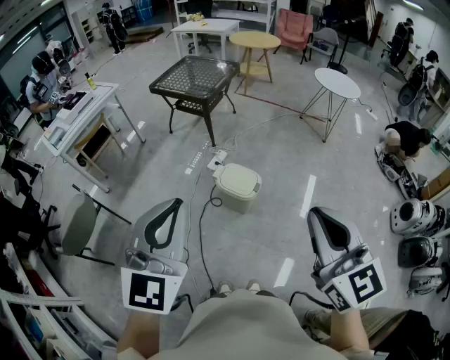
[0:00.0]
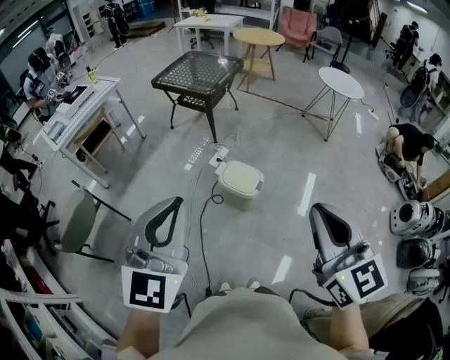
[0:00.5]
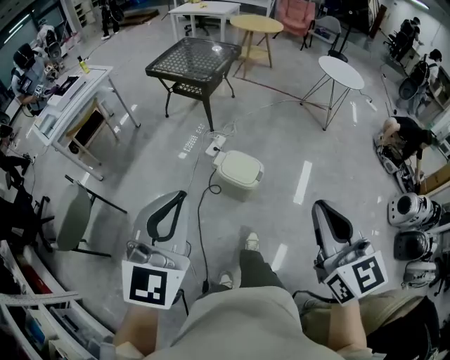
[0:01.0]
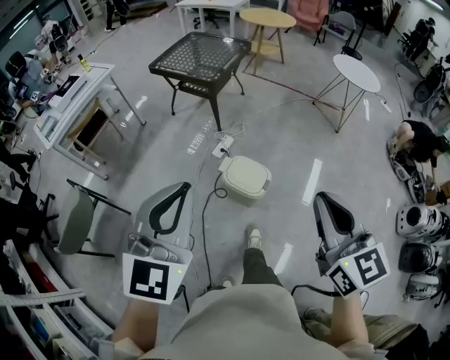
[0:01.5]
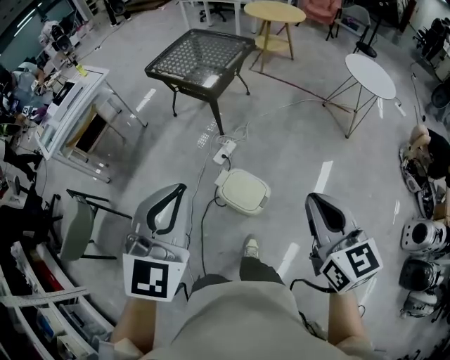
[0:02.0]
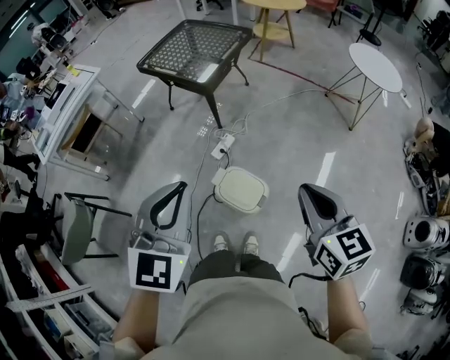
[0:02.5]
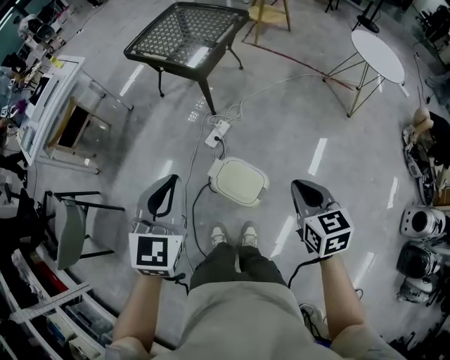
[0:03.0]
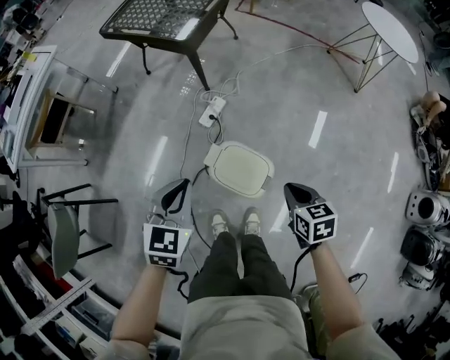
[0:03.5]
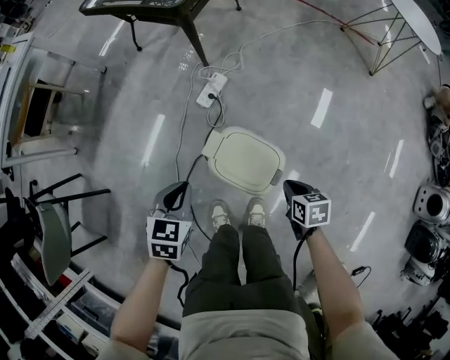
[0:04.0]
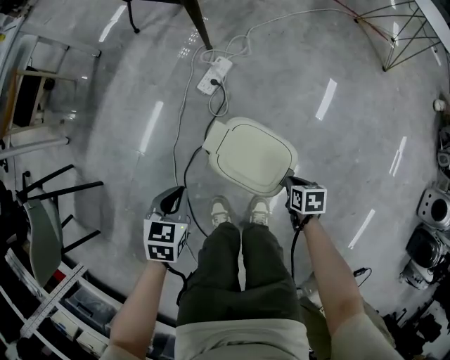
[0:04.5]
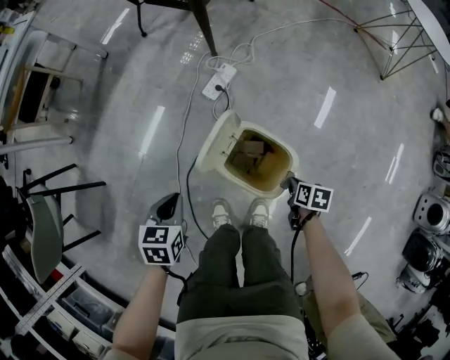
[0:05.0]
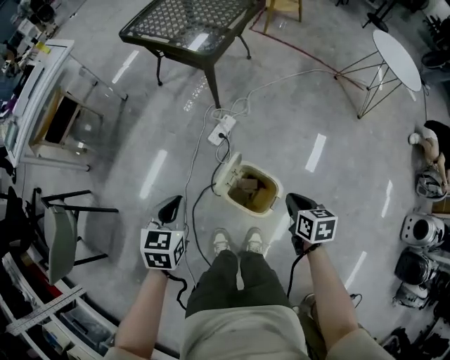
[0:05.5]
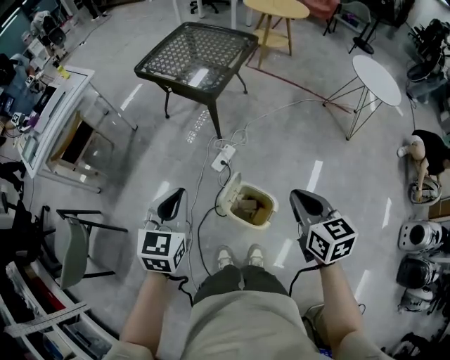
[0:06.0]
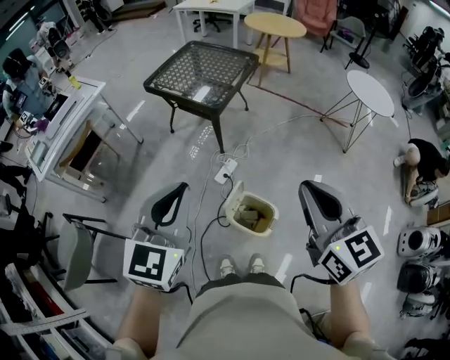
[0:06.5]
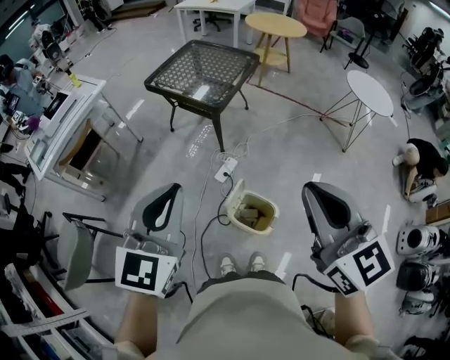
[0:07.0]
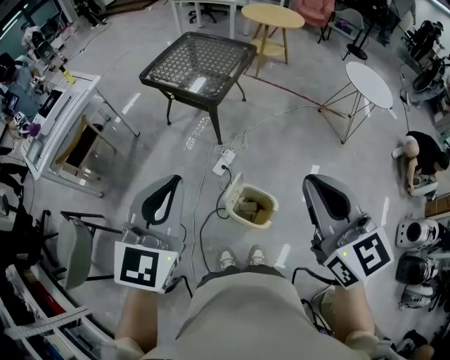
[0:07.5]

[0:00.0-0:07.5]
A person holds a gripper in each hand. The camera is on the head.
0:00.0 to 0:02.0: Both grippers travel together forward, some 30 cm.
0:02.0 to 0:04.0: The two grippers go roughly 50 cm downward. The left gripper angles its fingers downward, by roughly 40 degrees; the right gripper tips its fingers downward by some 50 degrees.
0:04.0 to 0:05.5: The left gripper goes about 15 cm upward and to the left. Meanwhile the right gripper moves upward, some 15 cm.
0:05.5 to 0:07.5: The two grippers go about 40 cm upward. The left gripper angles its fingers upward, by some 30 degrees. Meanwhile the right gripper points its fingers some 40 degrees further upward.

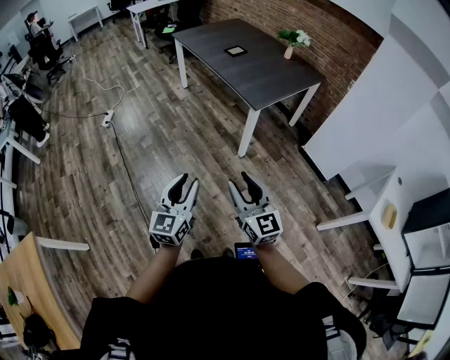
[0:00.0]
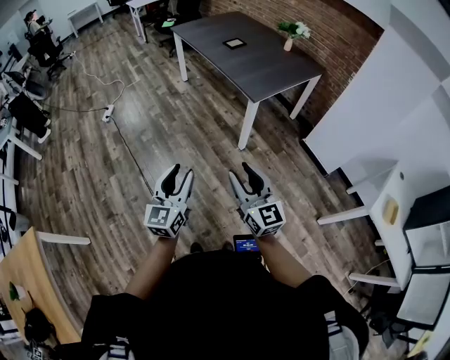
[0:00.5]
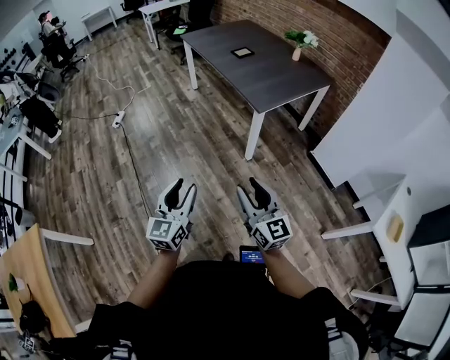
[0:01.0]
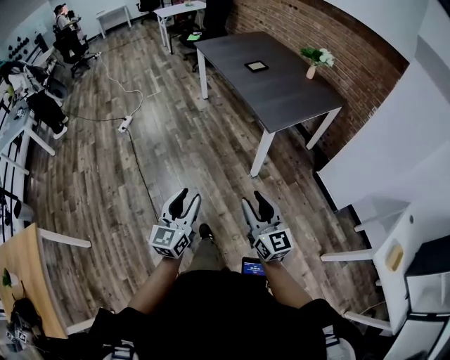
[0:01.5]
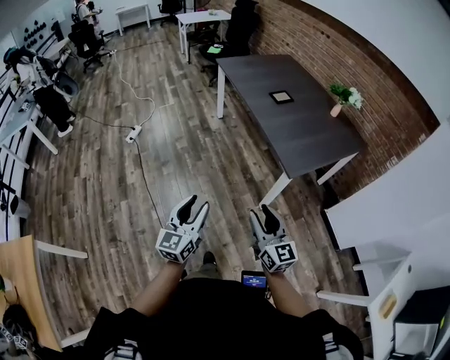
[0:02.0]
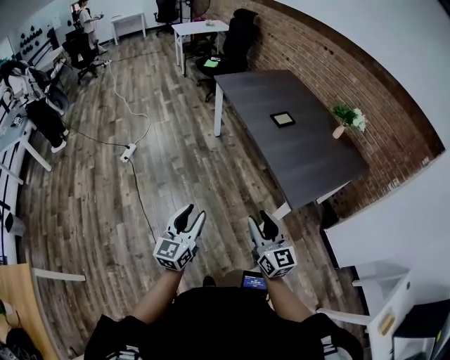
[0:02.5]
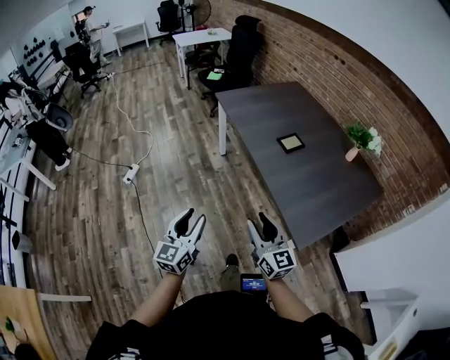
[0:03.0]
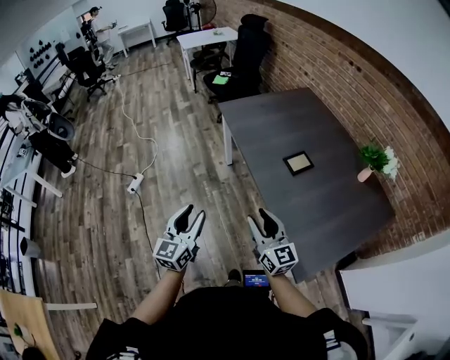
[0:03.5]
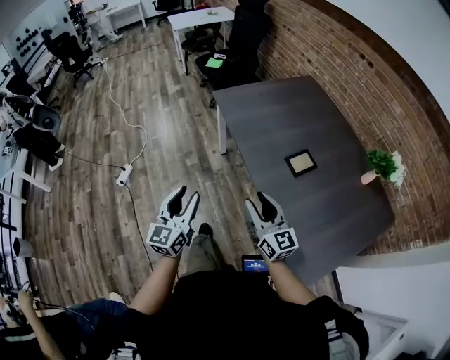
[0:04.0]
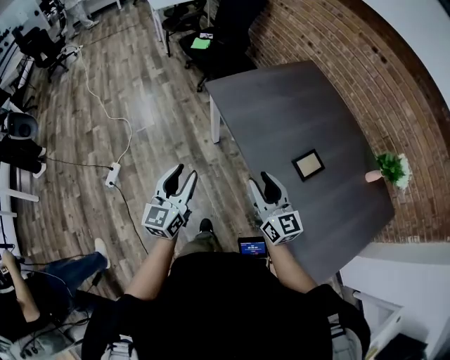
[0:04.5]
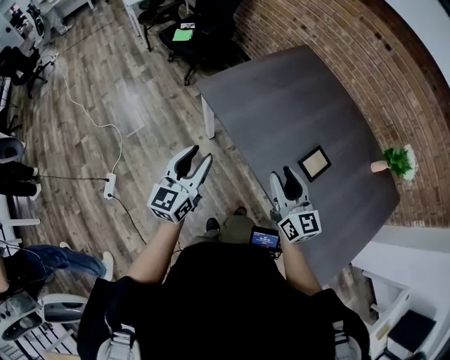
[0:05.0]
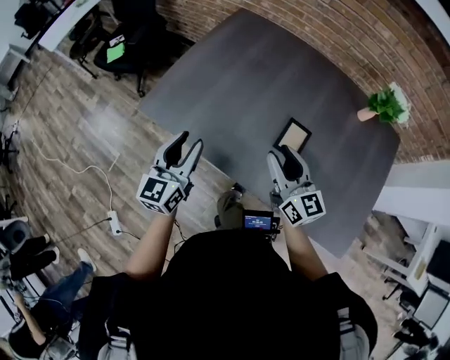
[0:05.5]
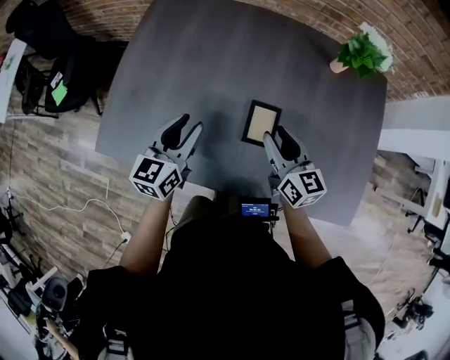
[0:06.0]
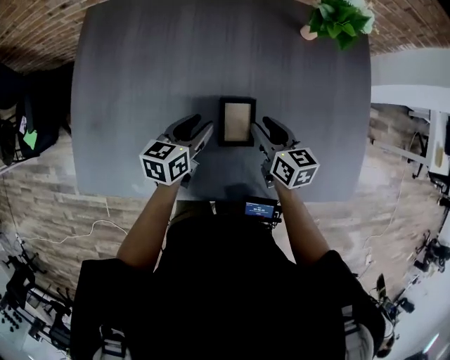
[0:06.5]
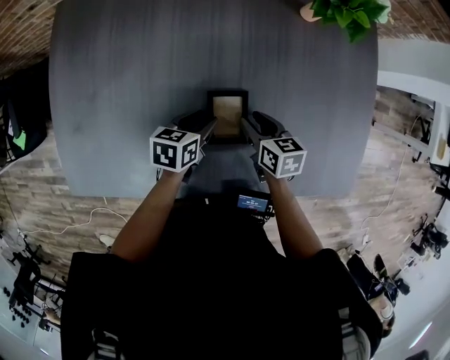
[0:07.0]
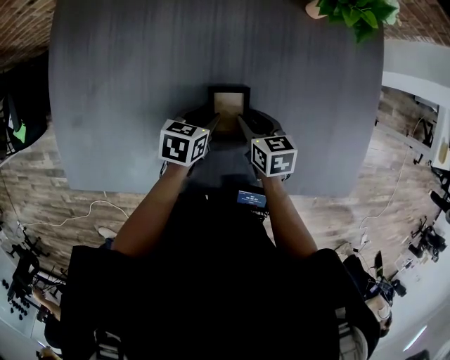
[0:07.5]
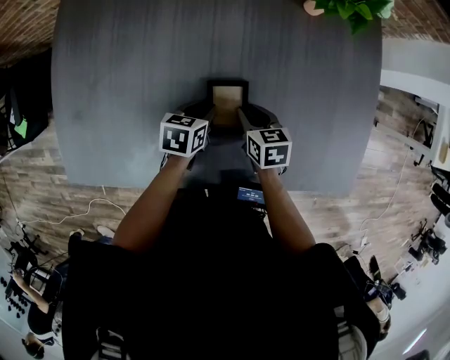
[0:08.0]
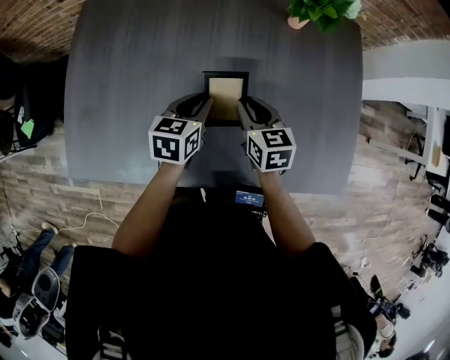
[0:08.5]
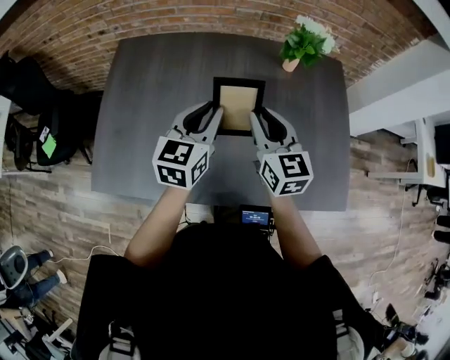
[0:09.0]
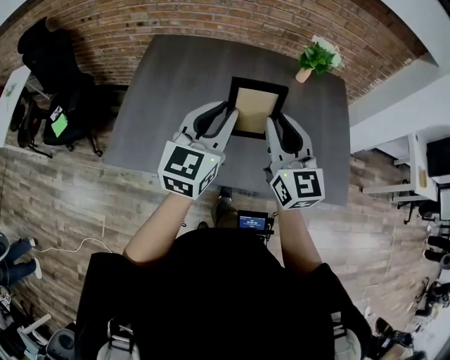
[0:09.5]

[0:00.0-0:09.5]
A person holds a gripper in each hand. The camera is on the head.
0:00.0 to 0:02.0: Both grippers travel together forward, roughly 25 cm.
0:02.0 to 0:04.0: The two grippers travel together, forward, about 60 cm.
0:04.0 to 0:05.5: The left gripper ends up about 50 cm from where it was, and rotates some 40 degrees; the right gripper shifts by roughly 30 cm, and rotates some 40 degrees.
0:05.5 to 0:07.5: The left gripper changes place by some 50 cm, and points its fingers approximately 40 degrees further downward; the right gripper is displaced downward by roughly 25 cm, and tips its fingers downward by some 50 degrees.
0:07.5 to 0:09.5: The grippers both shift upward by some 40 cm. The left gripper tilts its fingers approximately 50 degrees upward; the right gripper tips its fingers upward by approximately 50 degrees.

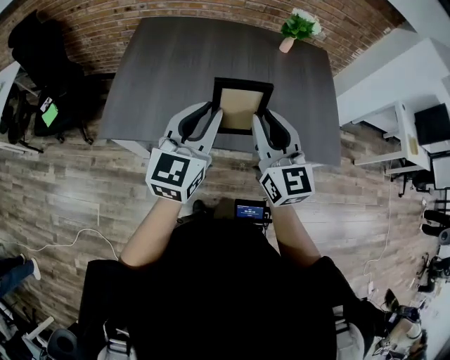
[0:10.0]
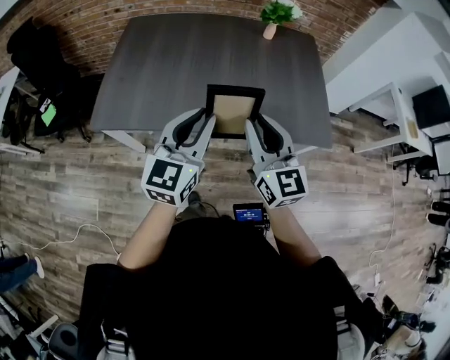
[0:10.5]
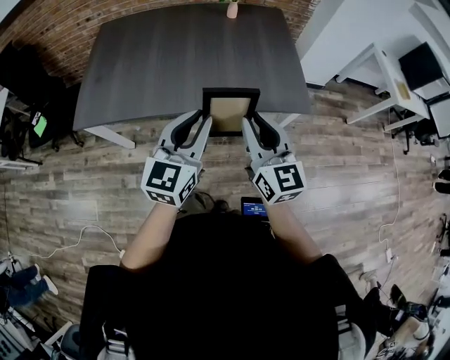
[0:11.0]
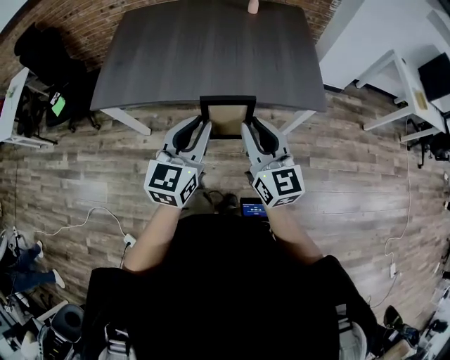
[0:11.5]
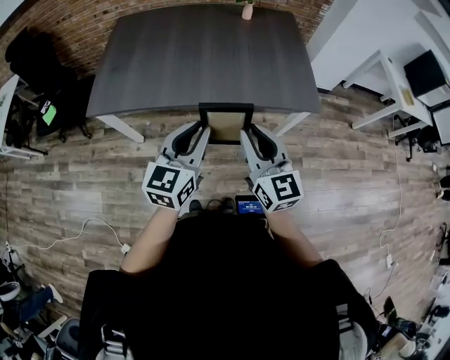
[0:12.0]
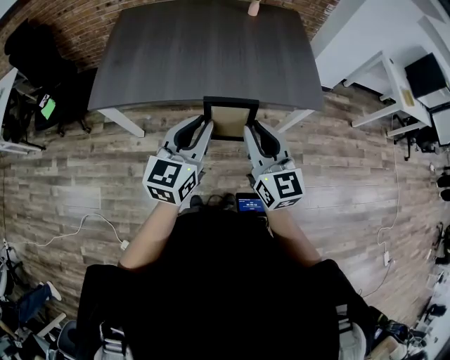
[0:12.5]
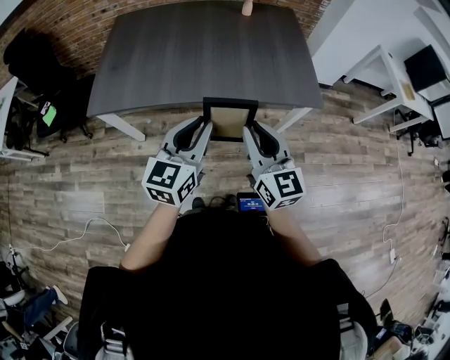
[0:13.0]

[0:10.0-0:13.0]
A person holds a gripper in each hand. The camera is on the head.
0:10.0 to 0:11.5: Both grippers travel together backward and to the right, about 30 cm.
0:11.5 to 0:13.0: The grippers make only small movements.

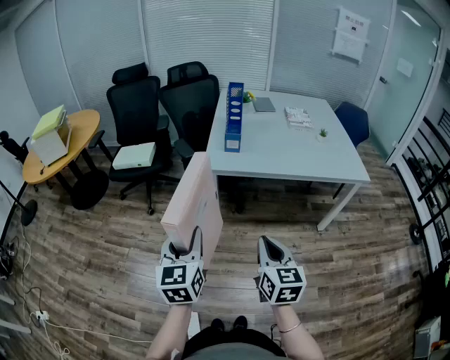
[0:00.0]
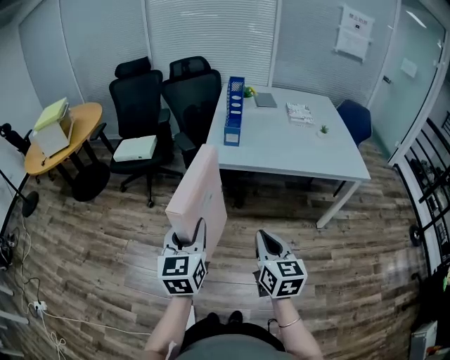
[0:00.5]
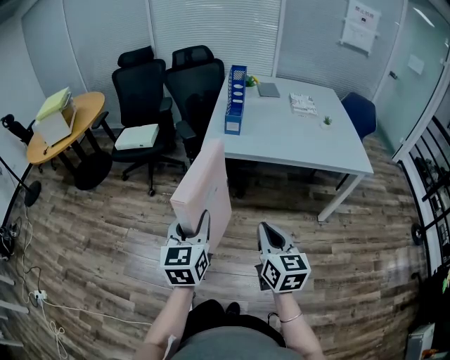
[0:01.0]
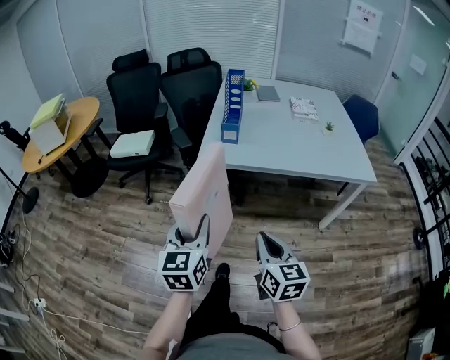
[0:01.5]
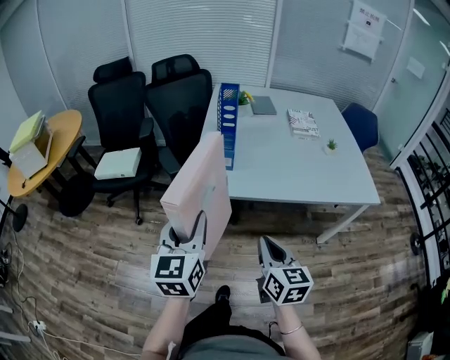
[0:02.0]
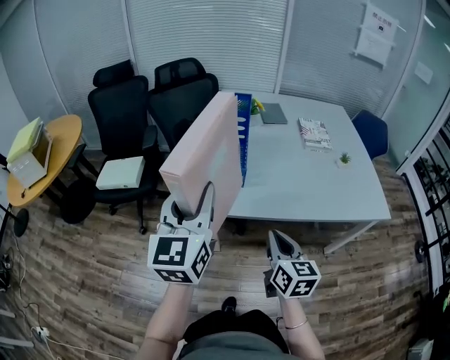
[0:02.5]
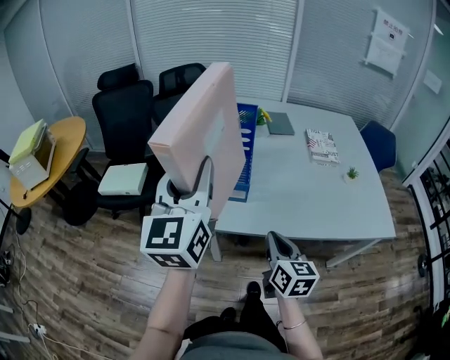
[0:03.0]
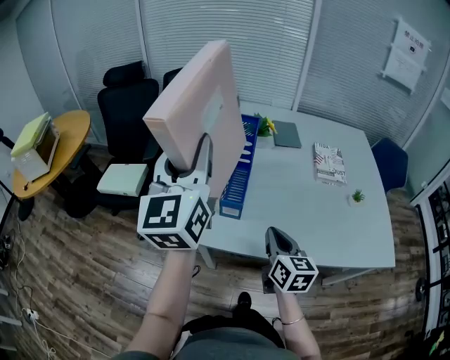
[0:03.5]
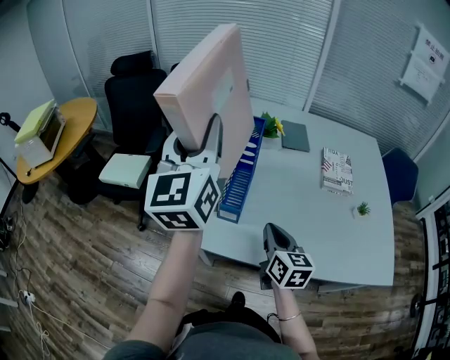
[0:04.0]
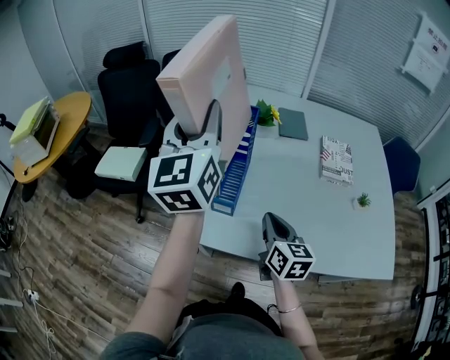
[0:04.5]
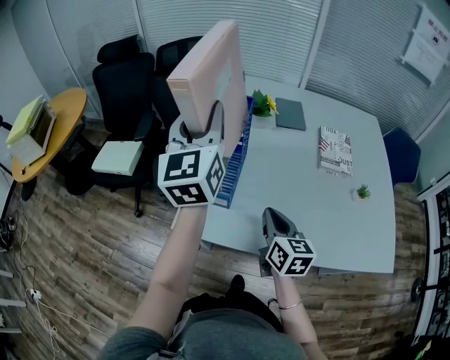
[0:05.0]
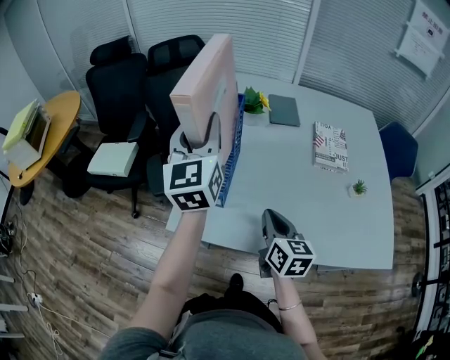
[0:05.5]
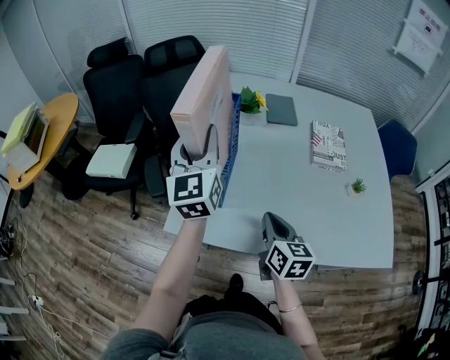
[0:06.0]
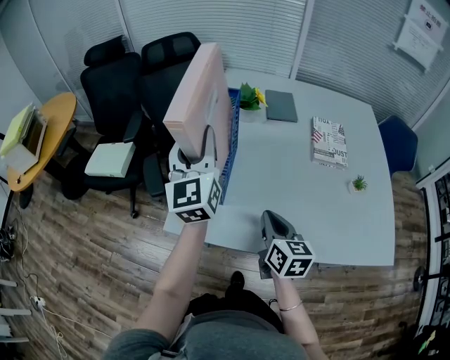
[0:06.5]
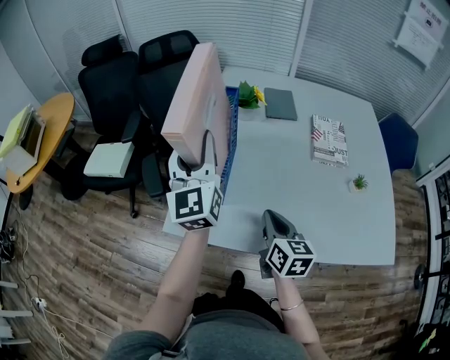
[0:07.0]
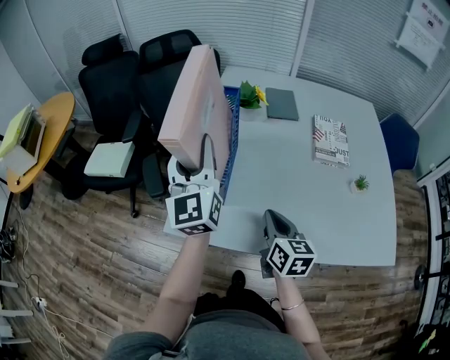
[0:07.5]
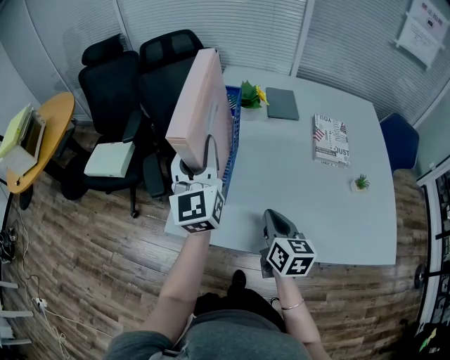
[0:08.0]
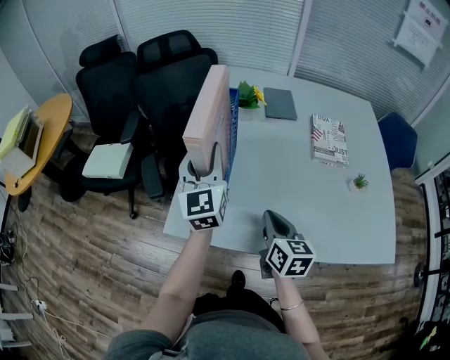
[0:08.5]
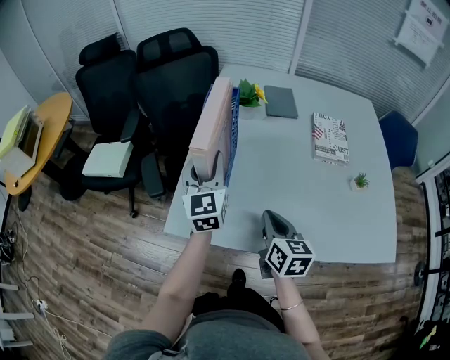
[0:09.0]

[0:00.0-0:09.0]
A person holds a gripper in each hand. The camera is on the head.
0:00.0 to 0:02.0: The two grippers go roughly 20 cm forward.
0:02.0 to 0:04.5: The right gripper shifts roughly 30 cm forward; the left gripper heads forward and upward, covering about 40 cm, and turns by about 20 degrees.
0:04.5 to 0:07.0: The right gripper changes place by about 5 cm; the left gripper moves downward, about 15 cm.
0:07.0 to 0:09.0: The left gripper moves downward, about 10 cm.
